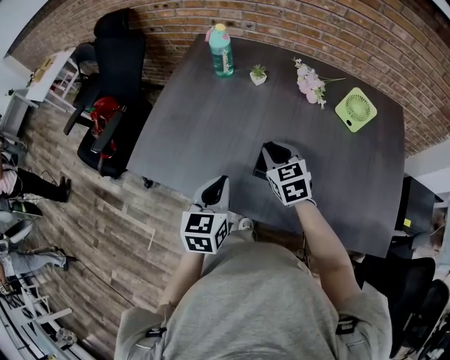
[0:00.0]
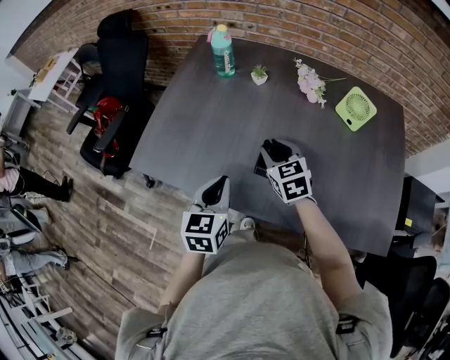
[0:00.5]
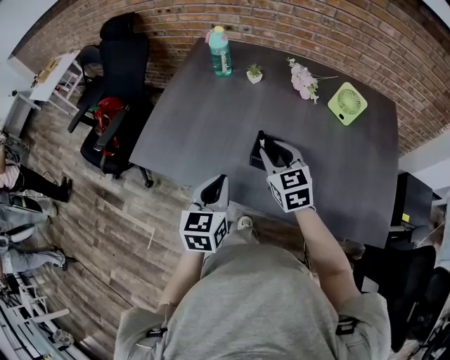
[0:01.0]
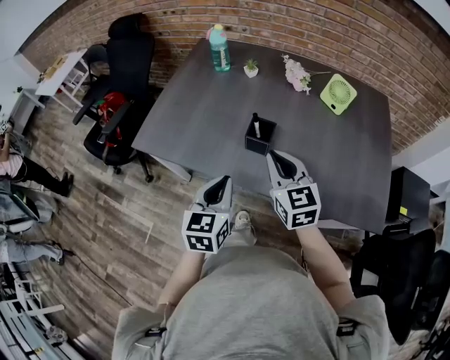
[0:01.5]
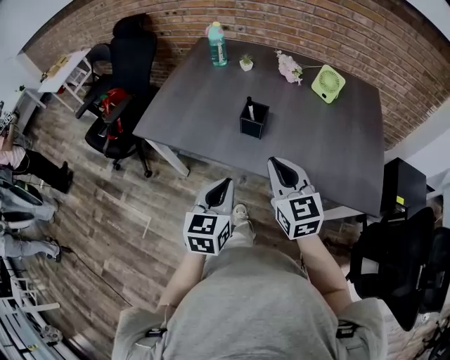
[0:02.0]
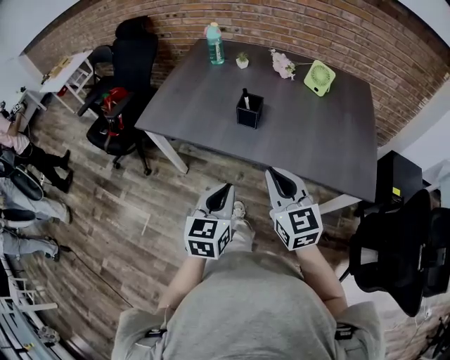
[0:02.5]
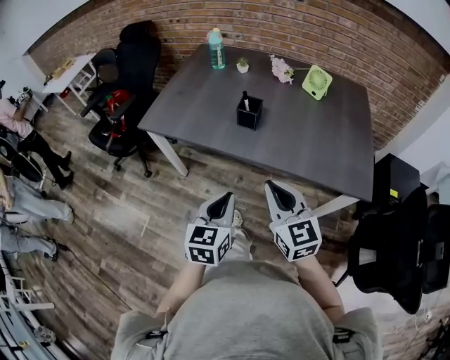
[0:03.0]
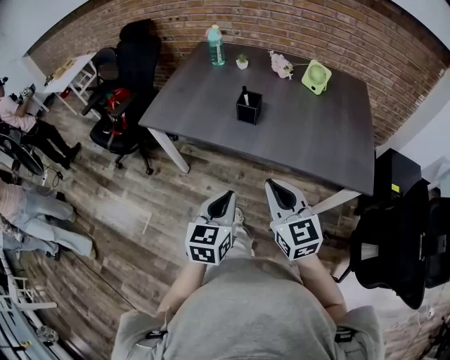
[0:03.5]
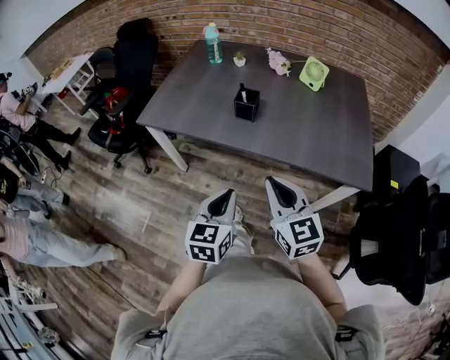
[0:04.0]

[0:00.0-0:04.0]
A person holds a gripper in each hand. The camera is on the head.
0:00.0 to 0:02.0: Both grippers travel together backward, some 25 cm. The right gripper swivels roughly 20 degrees.
0:02.0 to 0:04.0: The two grippers go roughly 15 cm backward.

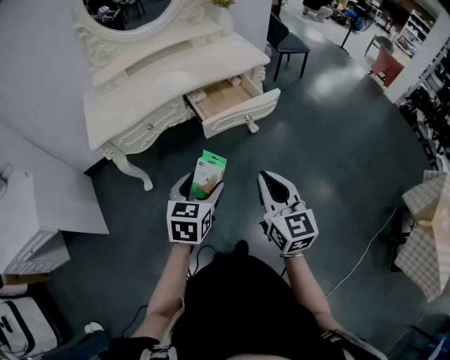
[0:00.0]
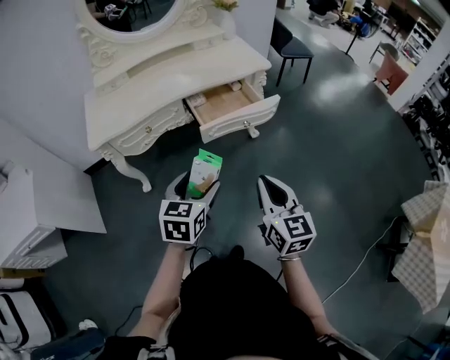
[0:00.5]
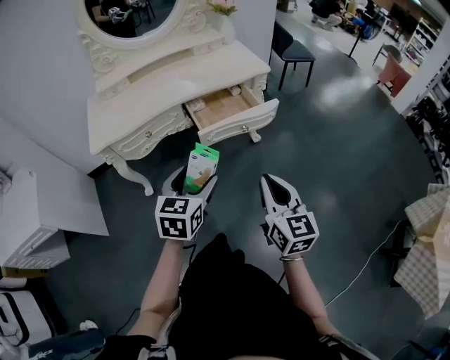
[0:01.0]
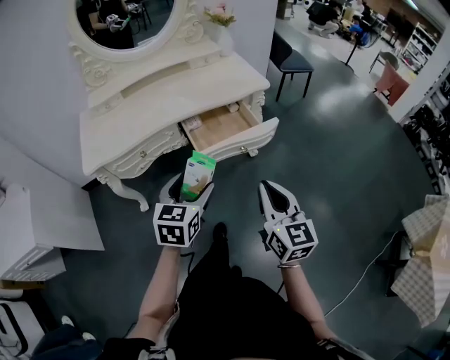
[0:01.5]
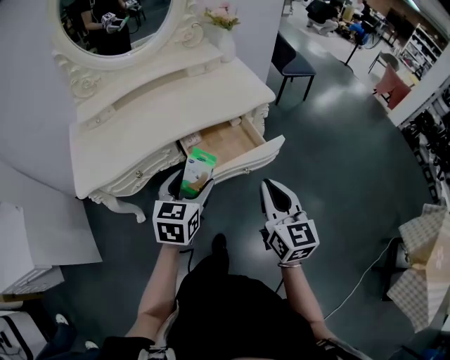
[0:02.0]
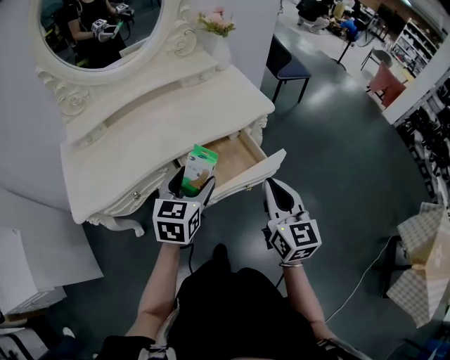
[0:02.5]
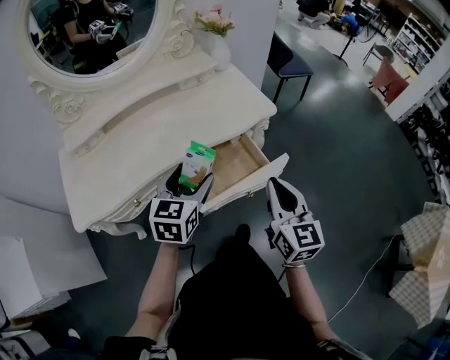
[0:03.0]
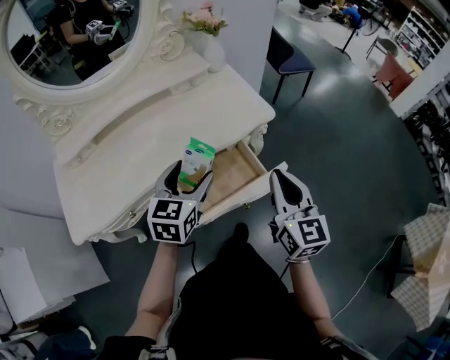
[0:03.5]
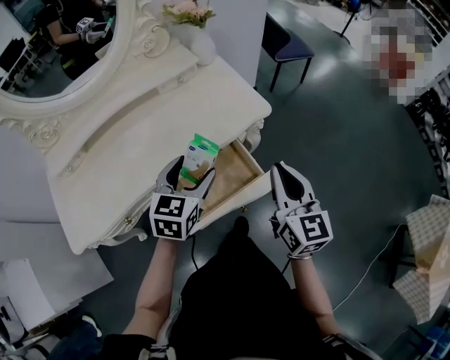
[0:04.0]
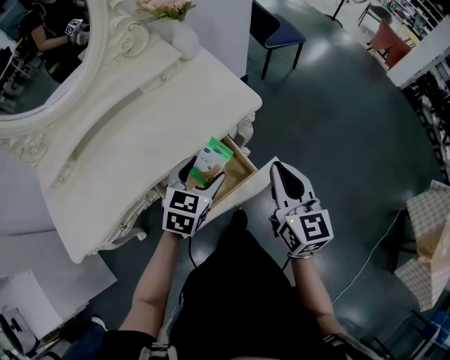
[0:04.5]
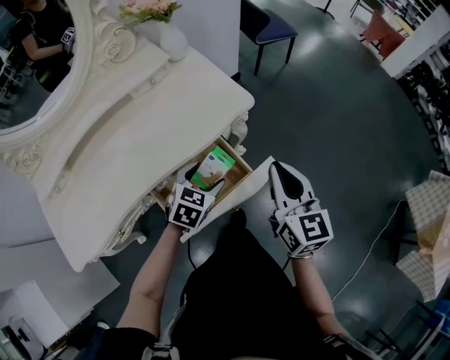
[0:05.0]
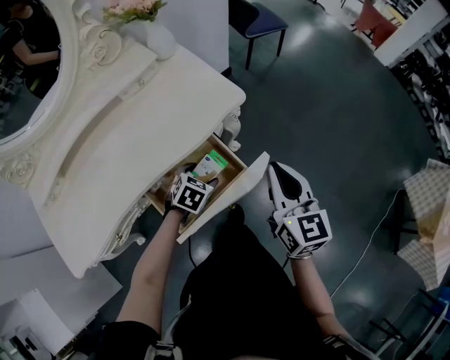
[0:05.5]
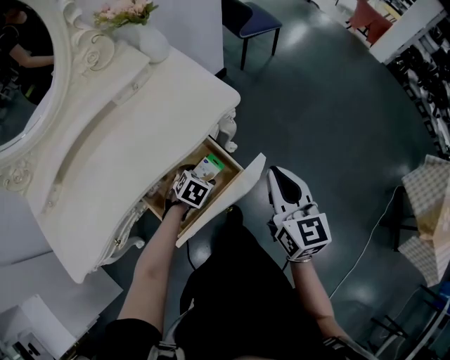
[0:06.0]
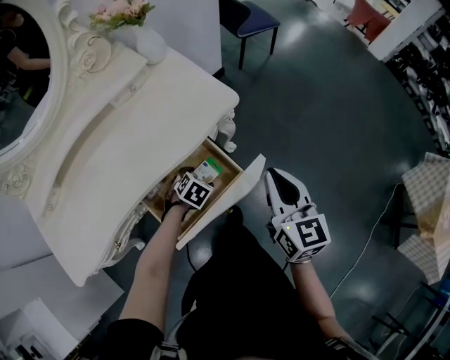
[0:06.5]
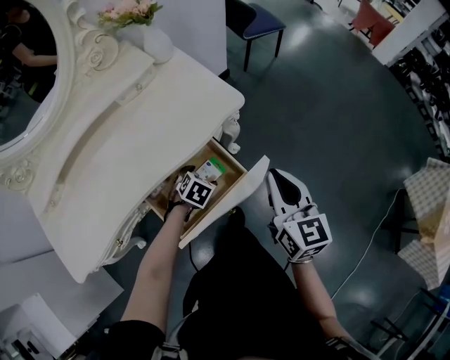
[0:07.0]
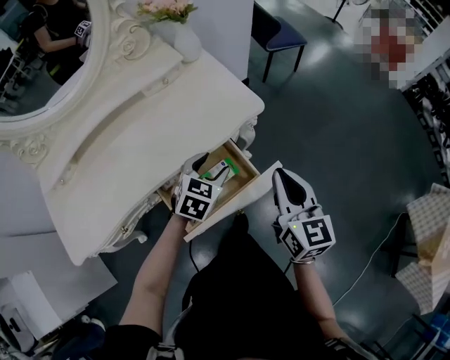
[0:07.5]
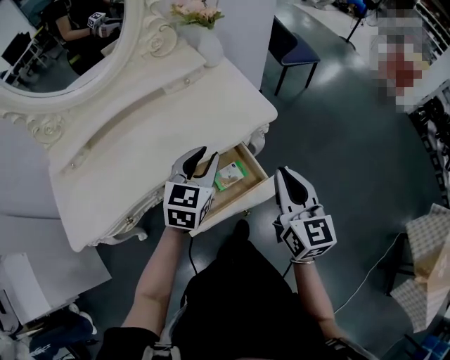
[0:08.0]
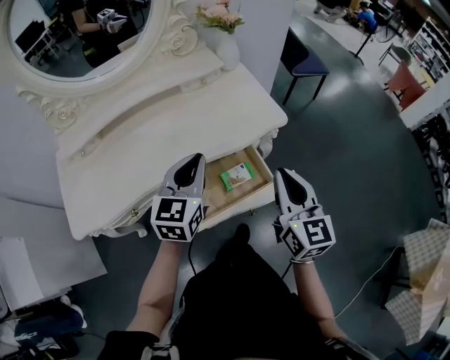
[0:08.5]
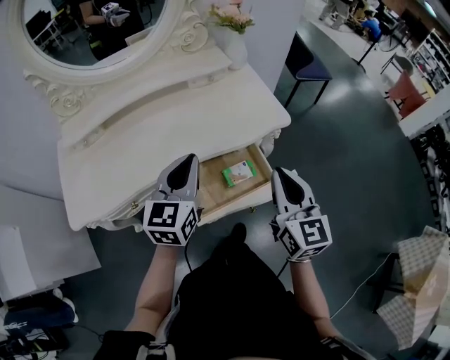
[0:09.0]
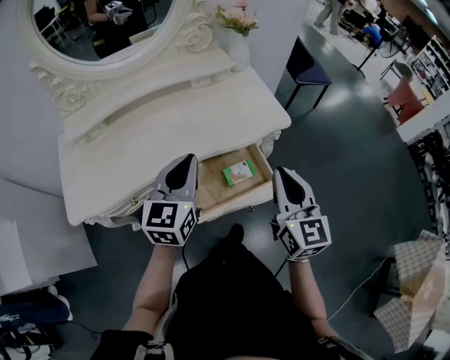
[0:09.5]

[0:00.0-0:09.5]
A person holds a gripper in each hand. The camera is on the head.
0:00.0 to 0:02.0: Both grippers travel together forward, some 20 cm.
0:02.0 to 0:04.0: Both grippers travel together forward, approximately 20 cm.
0:04.0 to 0:05.5: The left gripper shifts approximately 20 cm downward, and points its fingers approximately 30 degrees further downward; the right gripper shifts by some 5 cm.
0:05.5 to 0:07.5: The left gripper goes about 10 cm upward.
0:07.5 to 0:09.5: The right gripper heads to the left and upward, covering roughly 10 cm; the left gripper heads upward, to the left and backward, covering approximately 25 cm, swivels approximately 40 degrees, and closes up.

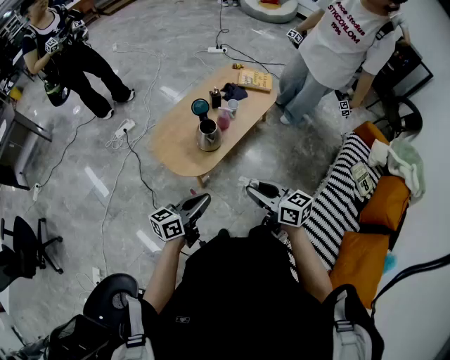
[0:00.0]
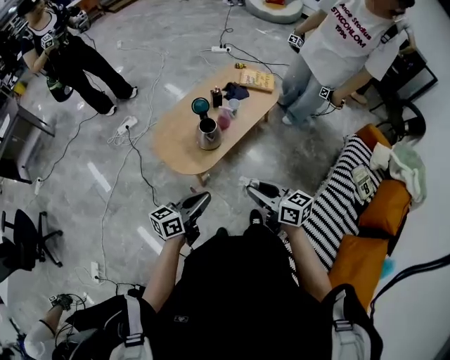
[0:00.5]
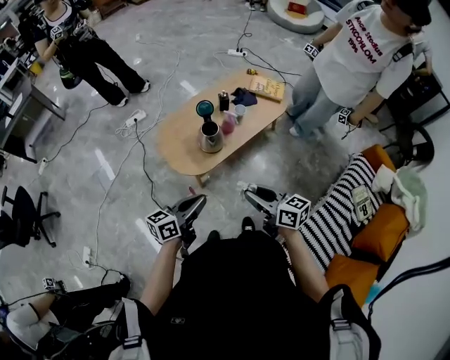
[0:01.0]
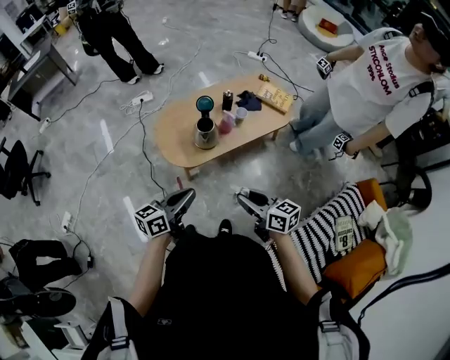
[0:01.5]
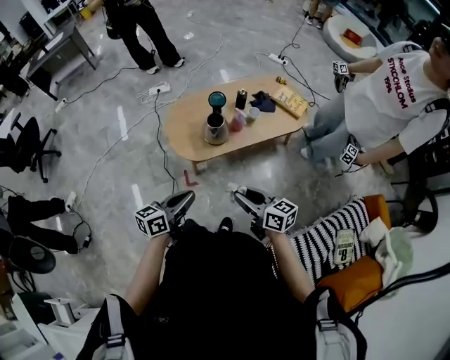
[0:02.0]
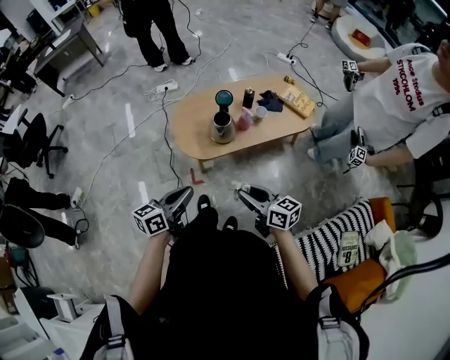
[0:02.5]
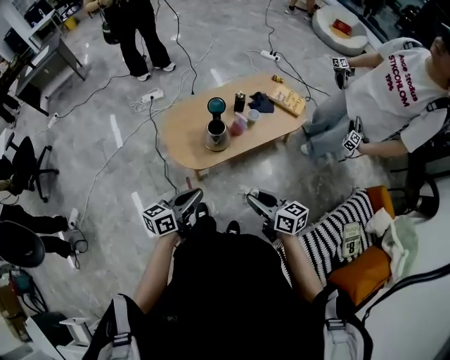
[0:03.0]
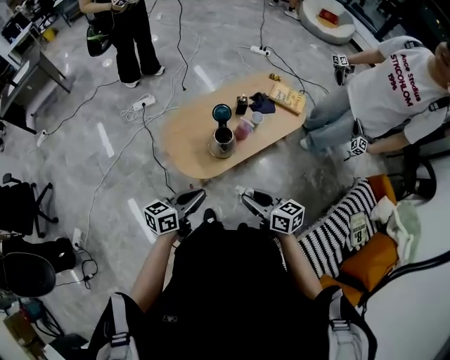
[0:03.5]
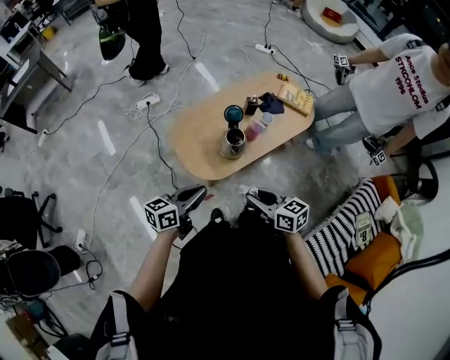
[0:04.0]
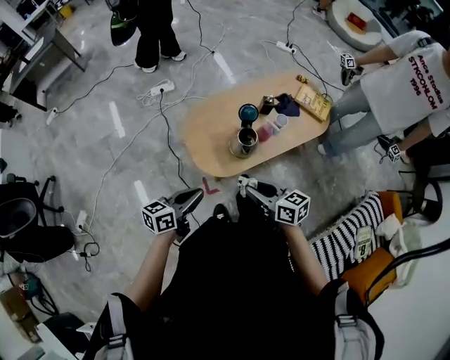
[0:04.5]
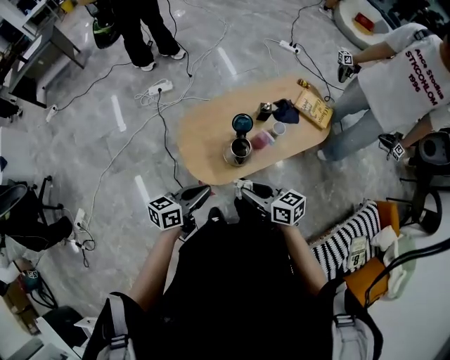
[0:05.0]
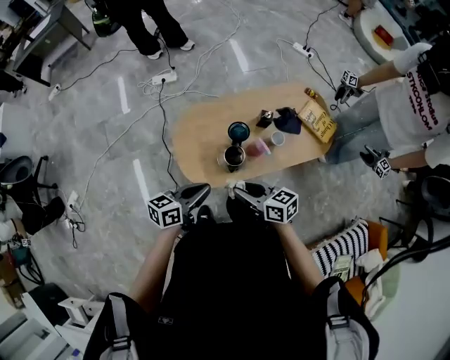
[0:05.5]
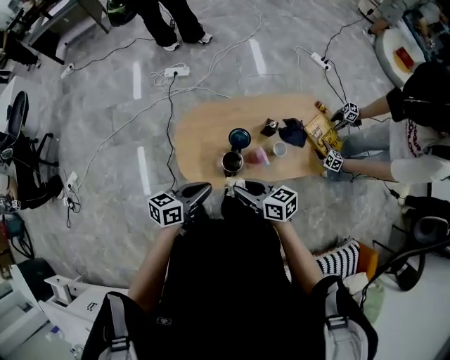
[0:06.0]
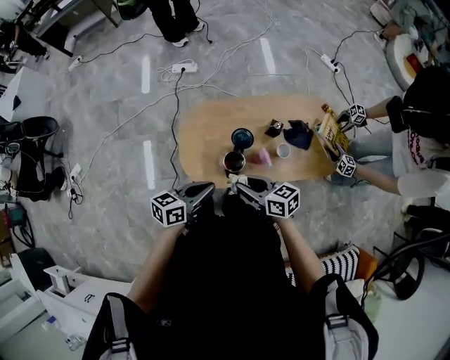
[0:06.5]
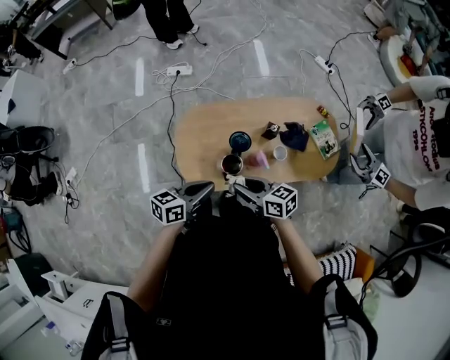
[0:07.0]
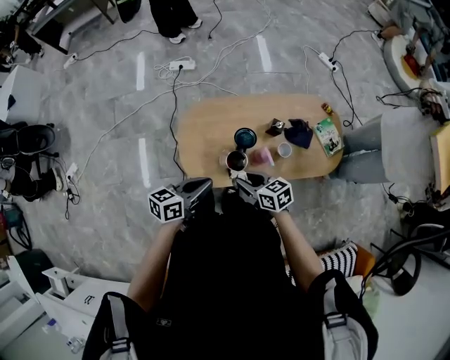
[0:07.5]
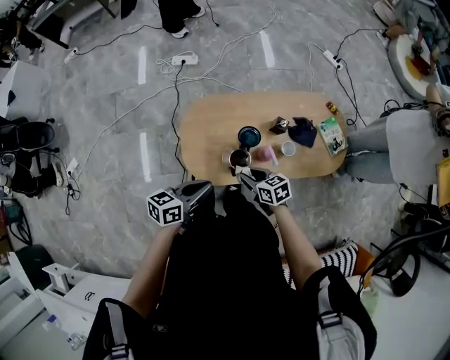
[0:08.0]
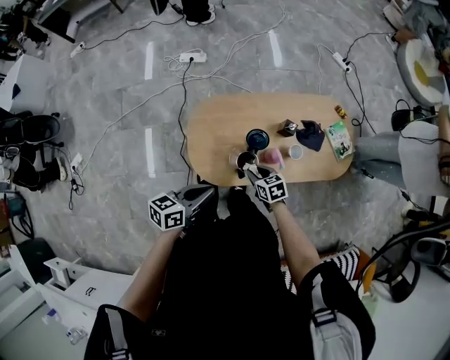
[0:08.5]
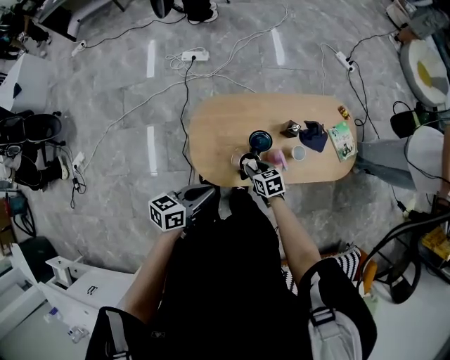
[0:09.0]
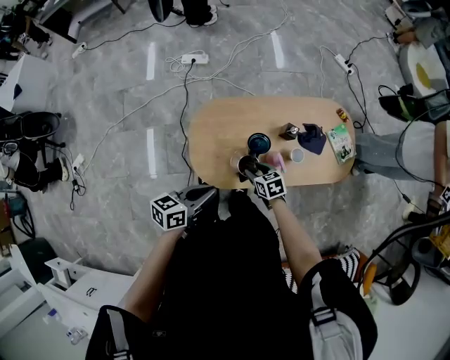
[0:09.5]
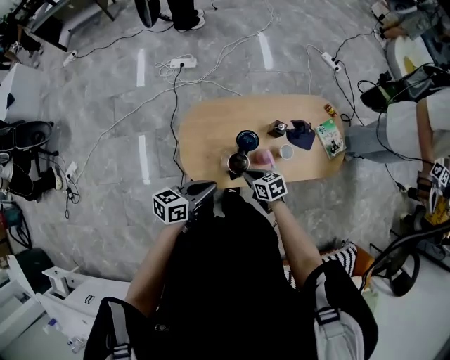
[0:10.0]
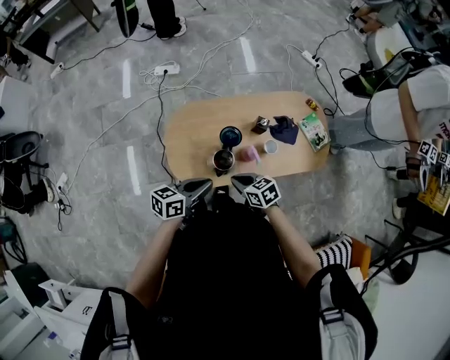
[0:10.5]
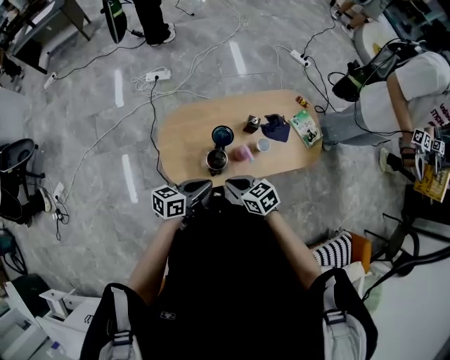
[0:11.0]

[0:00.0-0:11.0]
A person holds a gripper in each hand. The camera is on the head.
0:00.0 to 0:02.0: The right gripper ends up approximately 10 cm from where it was, and changes its angle by some 30 degrees. The left gripper shifts by approximately 10 cm, and changes its angle by roughly 30 degrees.
0:02.0 to 0:03.5: The grippers both shift forward and to the left by approximately 15 cm.
0:03.5 to 0:05.5: Both grippers travel together forward, some 15 cm. The right gripper rotates some 20 degrees.
0:05.5 to 0:07.5: The right gripper is displaced forward and downward by some 10 cm.
0:07.5 to 0:09.0: The right gripper moves downward and forward, about 15 cm.
0:09.0 to 0:11.0: The right gripper goes some 15 cm upward and backward, and closes its fingers, while the left gripper is displaced to the right by roughly 10 cm.

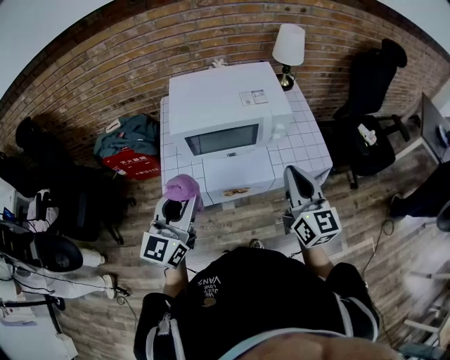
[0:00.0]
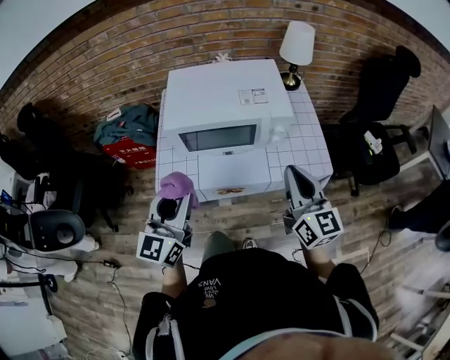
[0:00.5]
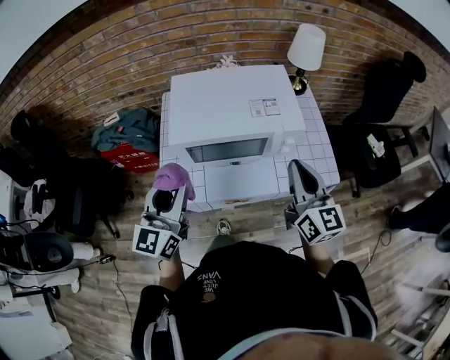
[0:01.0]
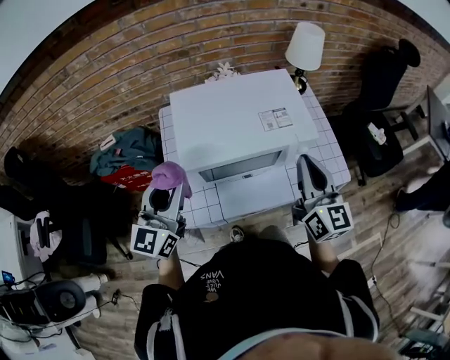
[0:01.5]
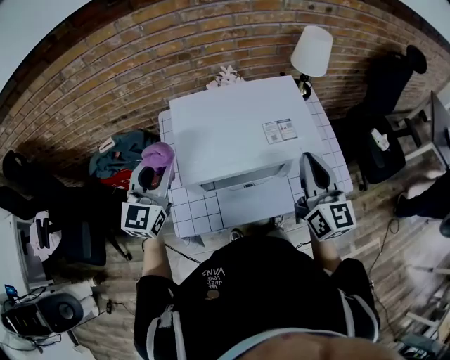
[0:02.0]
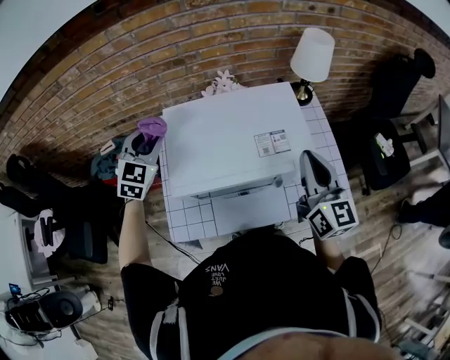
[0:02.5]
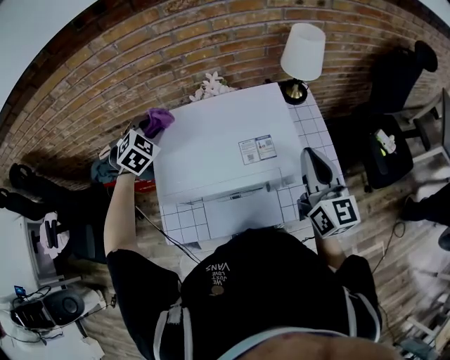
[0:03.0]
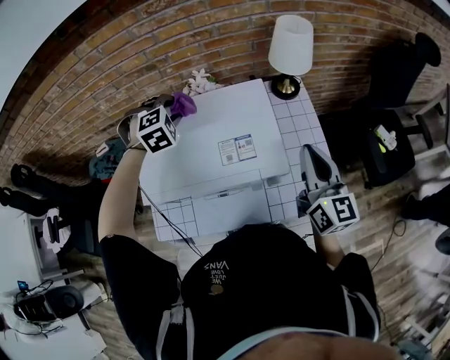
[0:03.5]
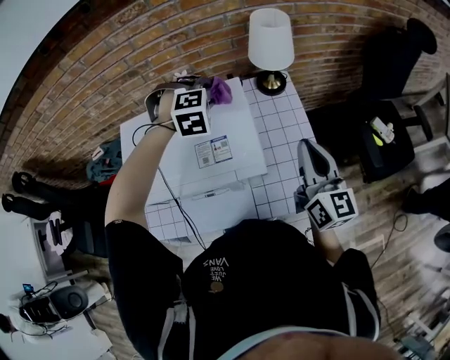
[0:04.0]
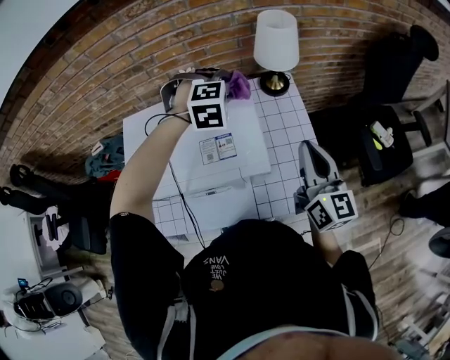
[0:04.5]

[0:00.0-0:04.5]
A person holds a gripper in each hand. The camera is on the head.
0:00.0 to 0:02.0: The right gripper heads forward, covering approximately 20 cm. The left gripper moves forward and to the left, approximately 30 cm.
0:02.0 to 0:04.5: The right gripper heads to the right and forward, covering about 20 cm; the left gripper shifts roughly 40 cm to the right and forward, and tips its fingers downward by approximately 50 degrees.
